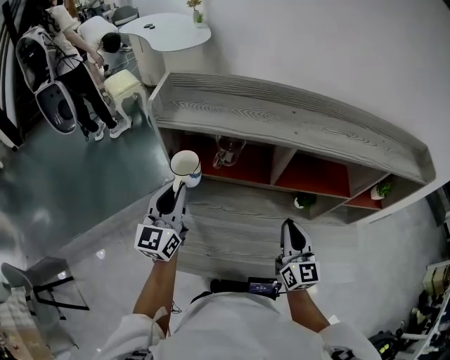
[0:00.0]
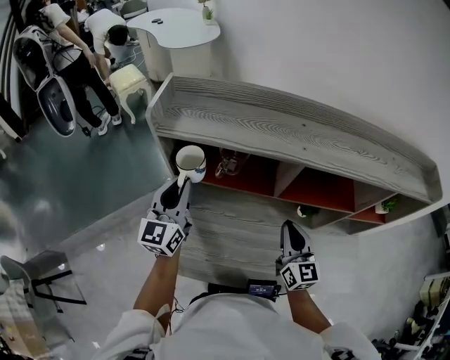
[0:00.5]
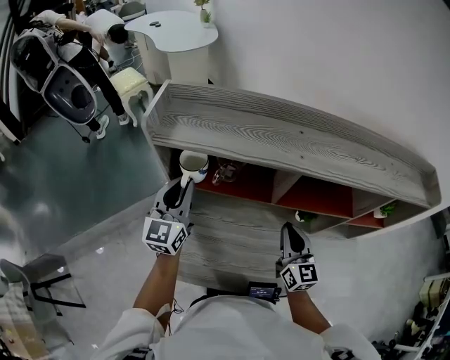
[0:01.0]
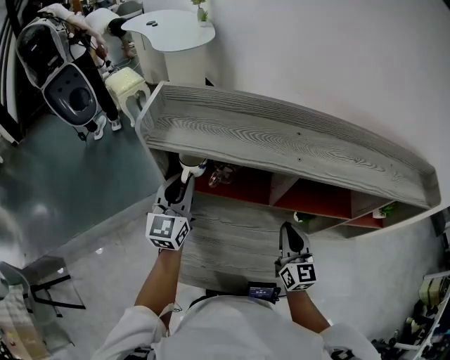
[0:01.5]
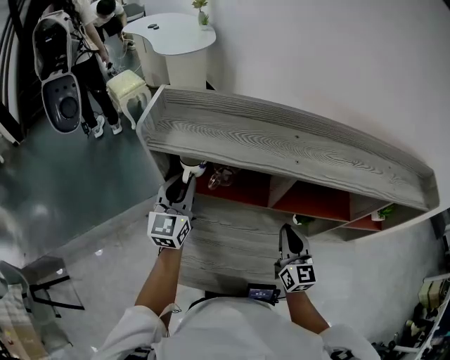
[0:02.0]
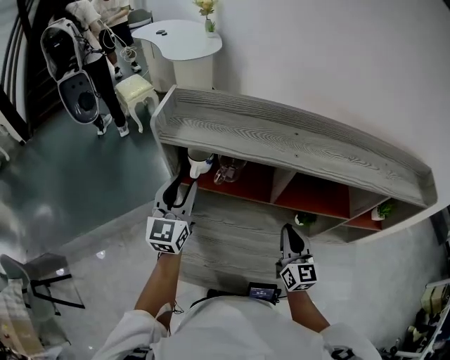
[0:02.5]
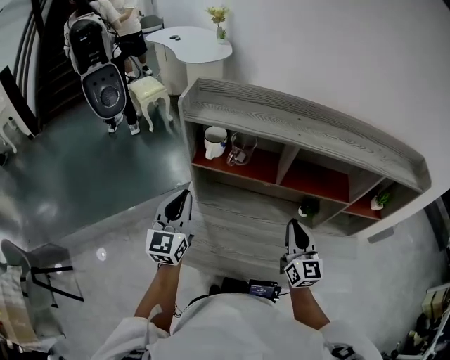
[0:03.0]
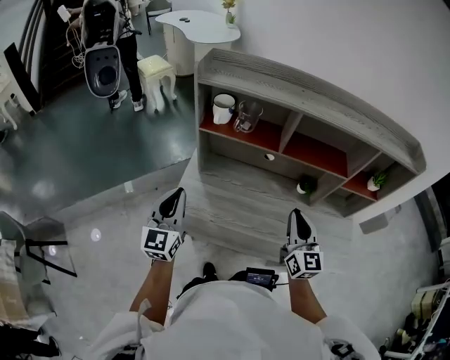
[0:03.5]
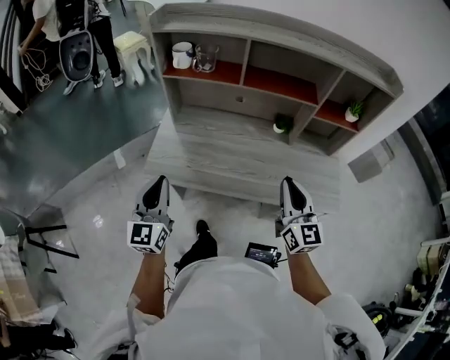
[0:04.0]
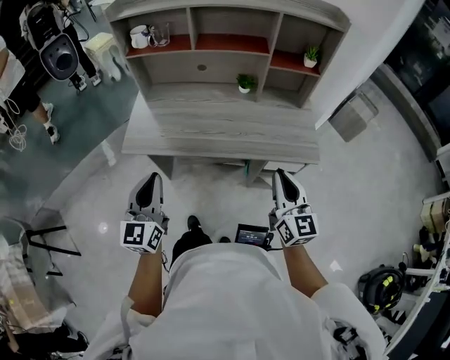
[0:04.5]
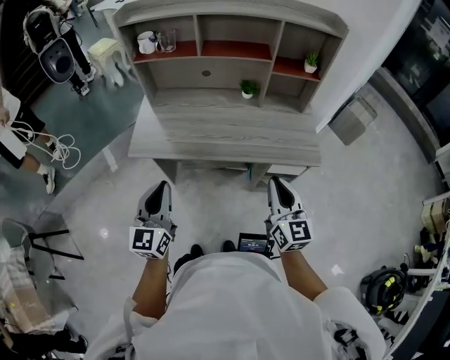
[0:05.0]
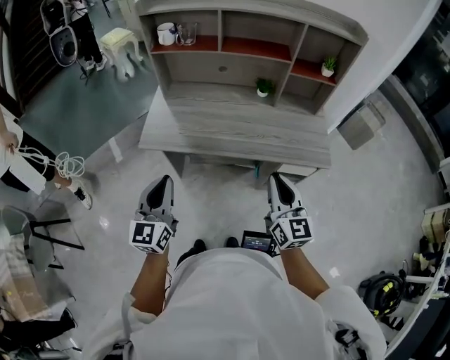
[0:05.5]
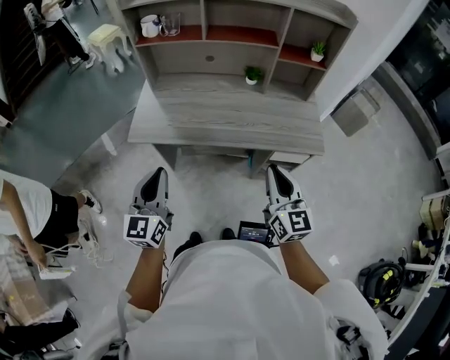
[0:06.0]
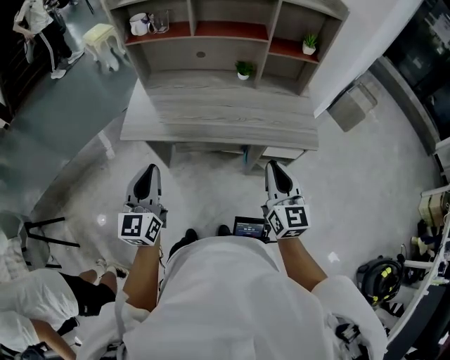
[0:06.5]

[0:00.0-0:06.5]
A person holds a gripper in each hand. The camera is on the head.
0:00.0 to 0:02.0: The two grippers go some 10 cm forward.
0:02.0 to 0:04.5: The two grippers travel together, backward, roughly 50 cm.
0:04.5 to 0:06.5: The right gripper reaches approximately 10 cm to the left, then returns.

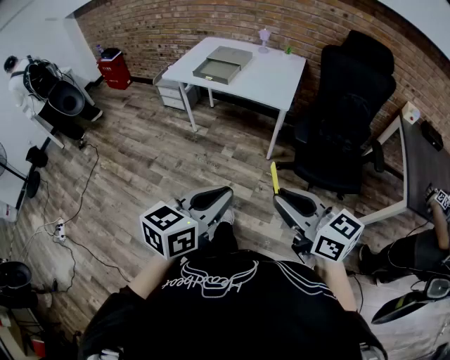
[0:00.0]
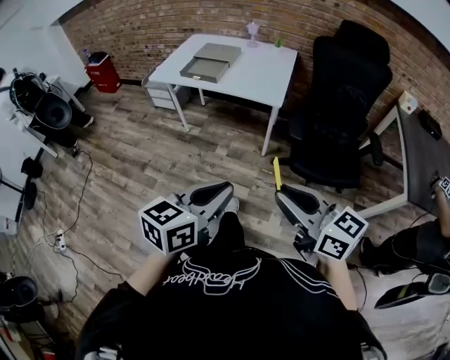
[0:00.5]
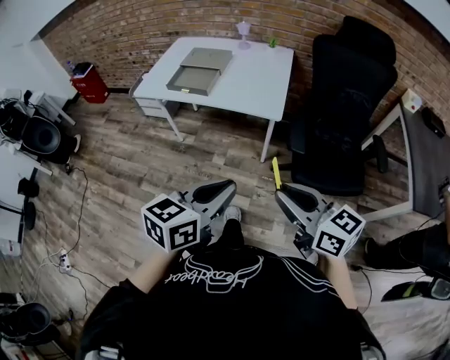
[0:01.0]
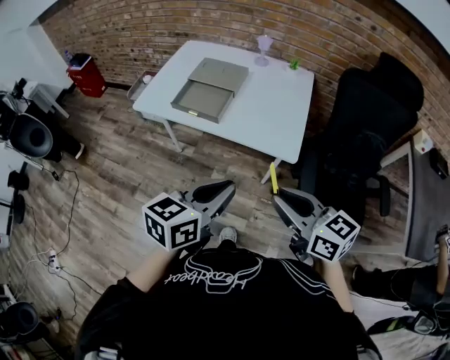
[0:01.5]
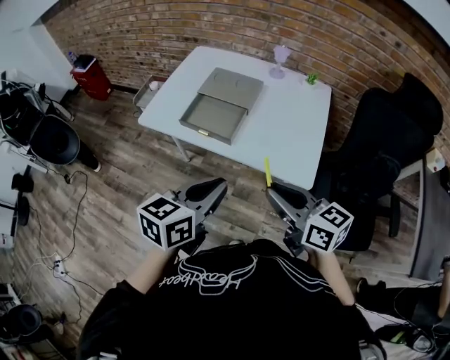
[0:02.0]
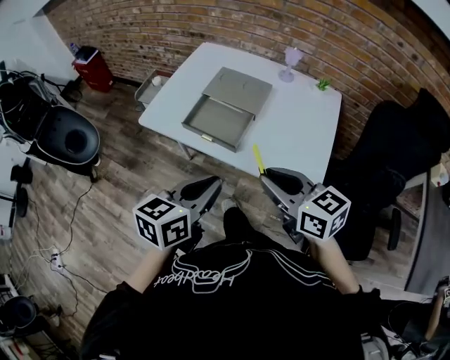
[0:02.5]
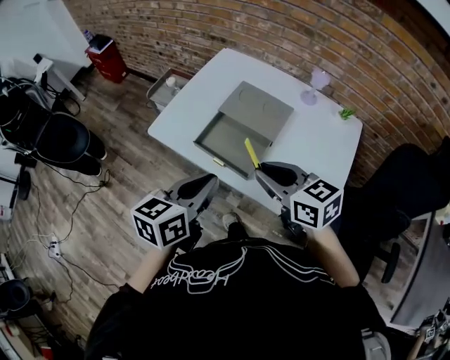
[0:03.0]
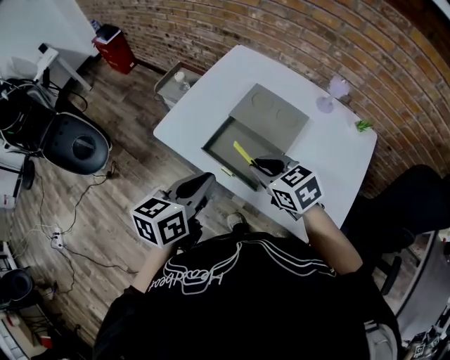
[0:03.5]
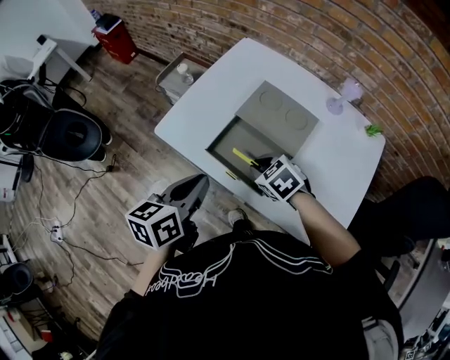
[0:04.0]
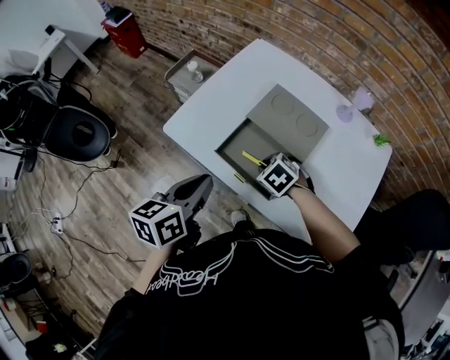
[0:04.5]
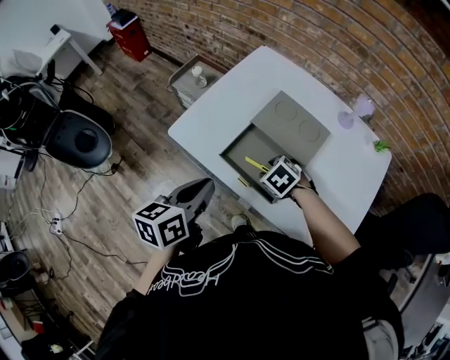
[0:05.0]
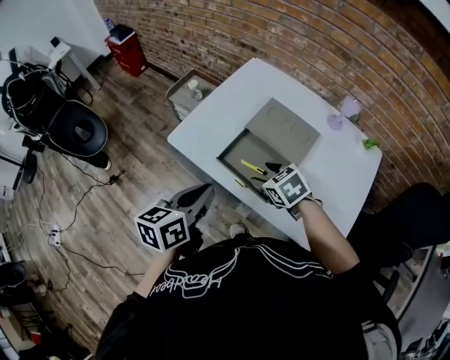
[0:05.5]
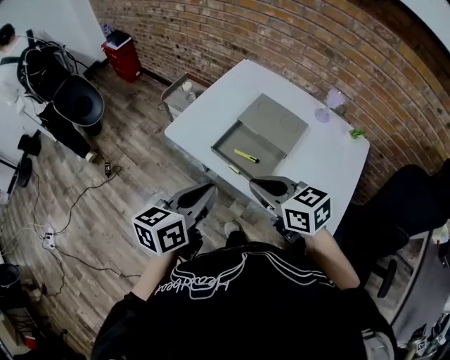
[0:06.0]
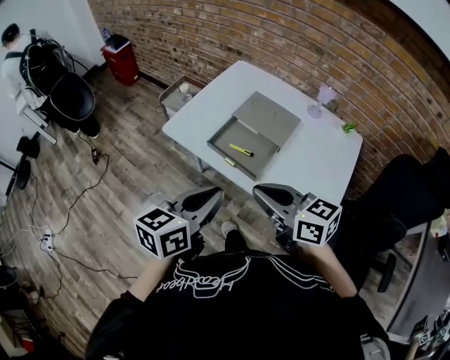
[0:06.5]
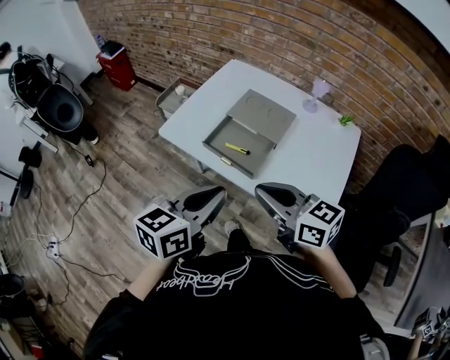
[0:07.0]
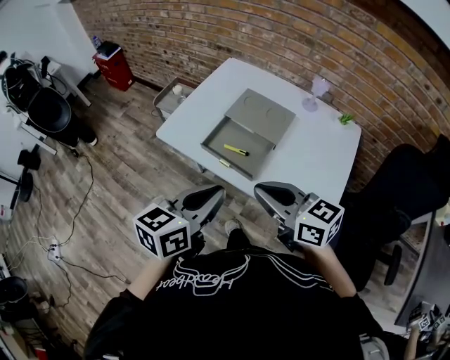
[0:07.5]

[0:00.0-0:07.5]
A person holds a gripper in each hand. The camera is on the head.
0:00.0 to 0:02.0: The two grippers travel together, forward, about 50 cm.
0:02.0 to 0:04.0: The left gripper goes about 25 cm forward and to the left, and swivels some 30 degrees. Meanwhile the right gripper heads forward and downward, covering about 35 cm, and angles its fingers downward, by approximately 40 degrees.
0:04.0 to 0:05.5: The right gripper opens its fingers.
0:05.5 to 0:07.5: The left gripper is displaced backward, to the right and upward by about 15 cm. Meanwhile the right gripper travels backward and upward by some 25 cm, tilts its fingers approximately 40 degrees upward, and closes.

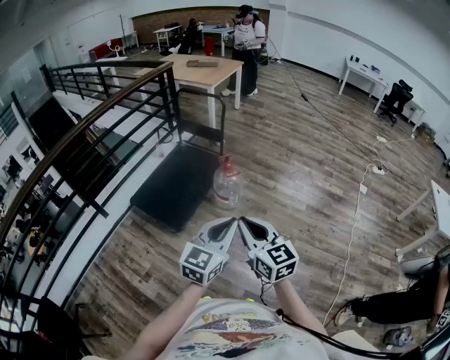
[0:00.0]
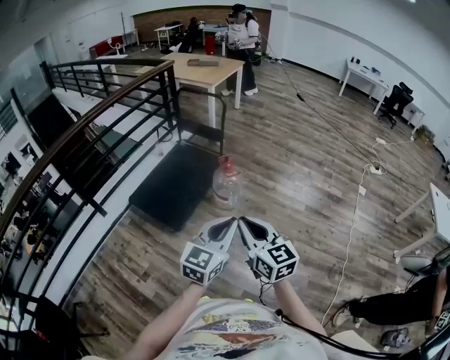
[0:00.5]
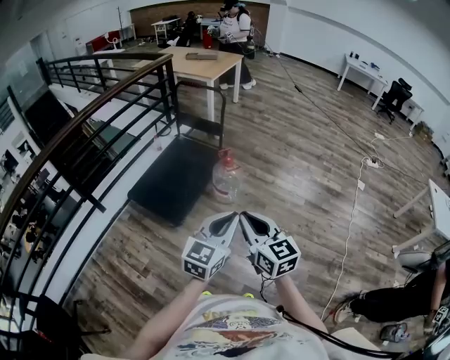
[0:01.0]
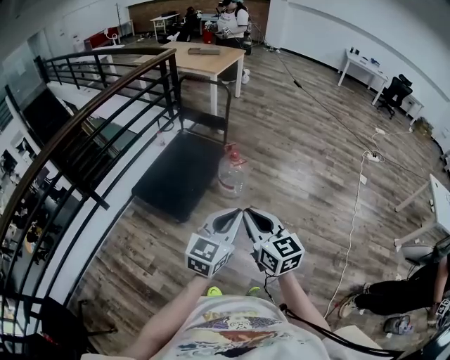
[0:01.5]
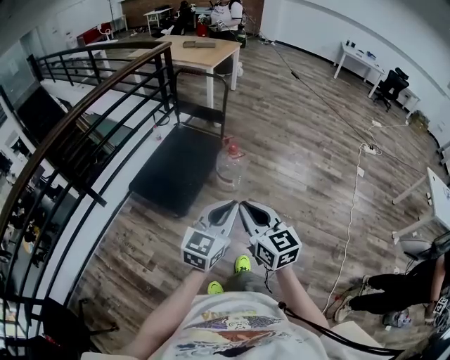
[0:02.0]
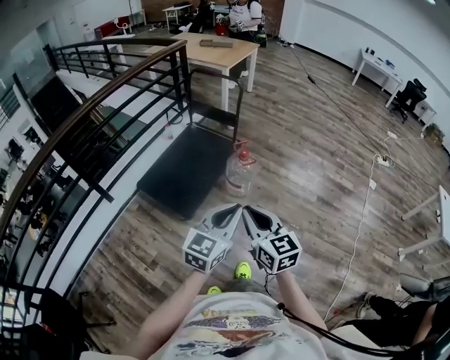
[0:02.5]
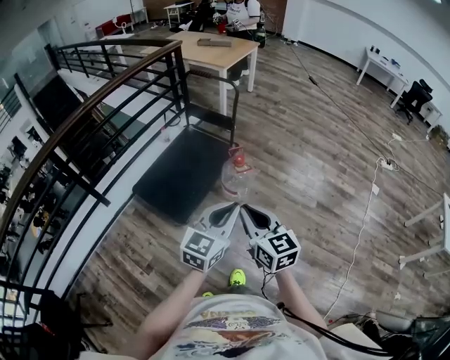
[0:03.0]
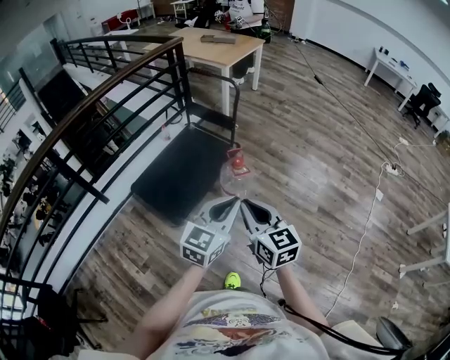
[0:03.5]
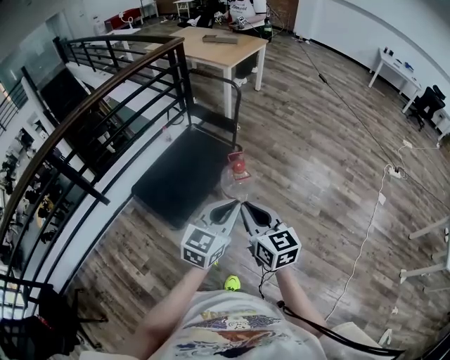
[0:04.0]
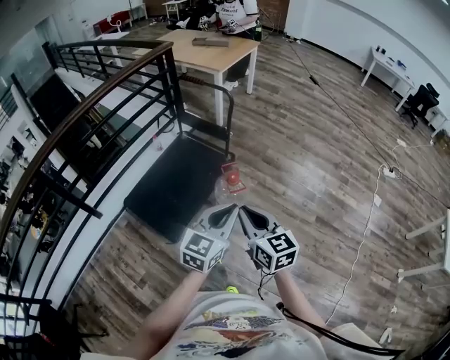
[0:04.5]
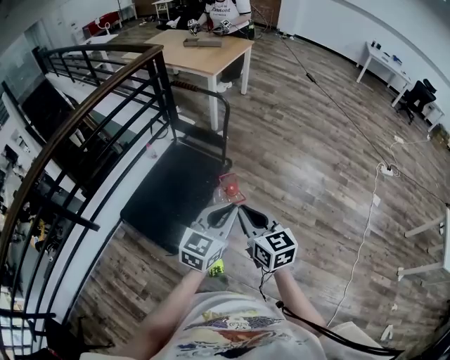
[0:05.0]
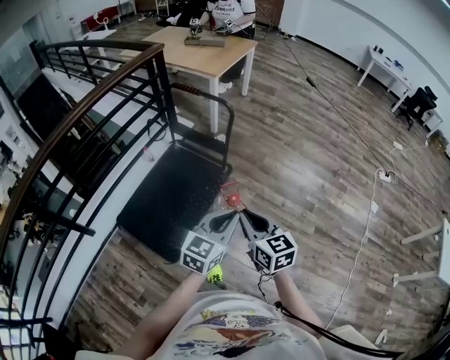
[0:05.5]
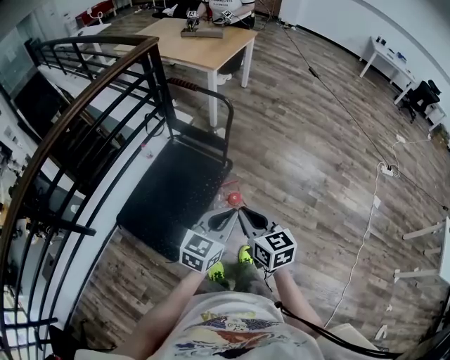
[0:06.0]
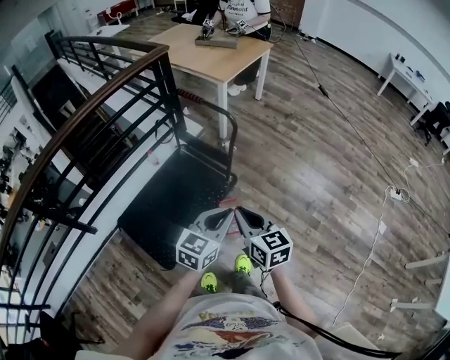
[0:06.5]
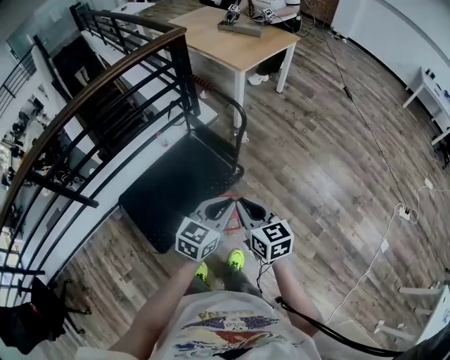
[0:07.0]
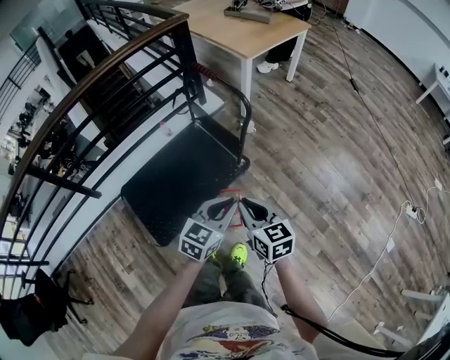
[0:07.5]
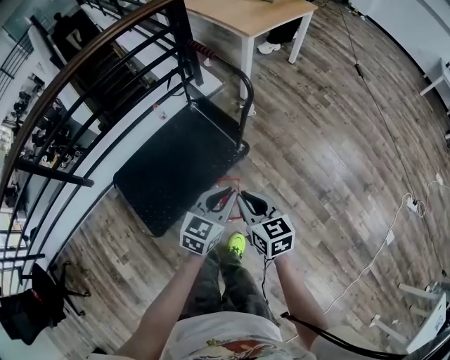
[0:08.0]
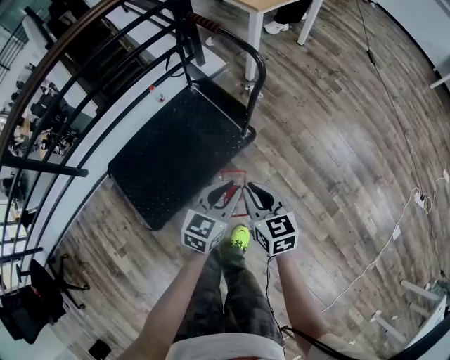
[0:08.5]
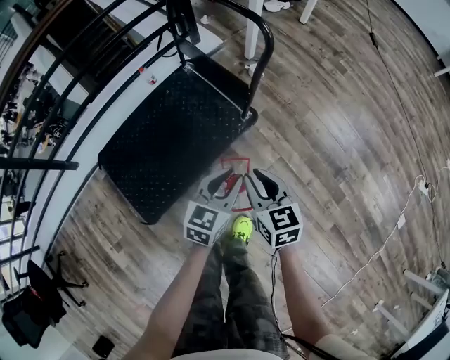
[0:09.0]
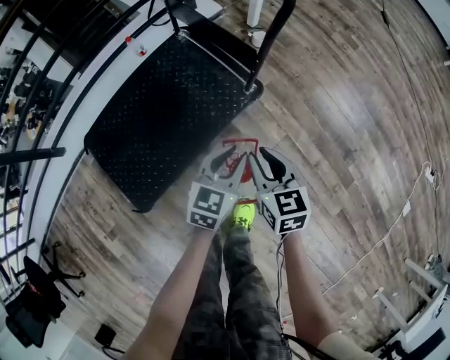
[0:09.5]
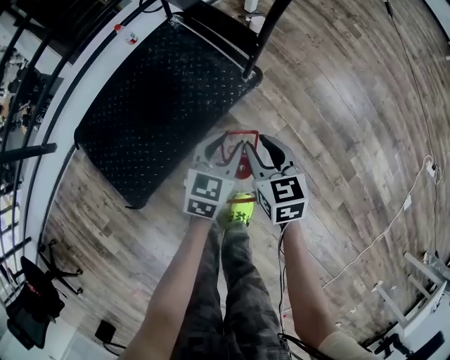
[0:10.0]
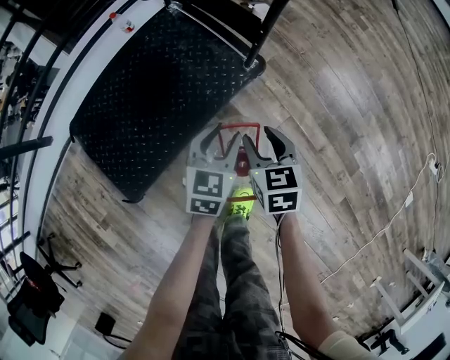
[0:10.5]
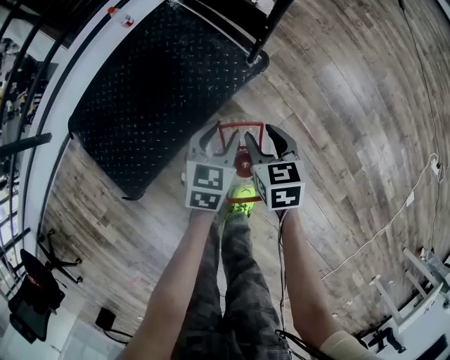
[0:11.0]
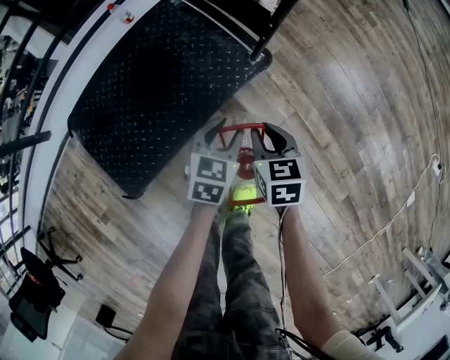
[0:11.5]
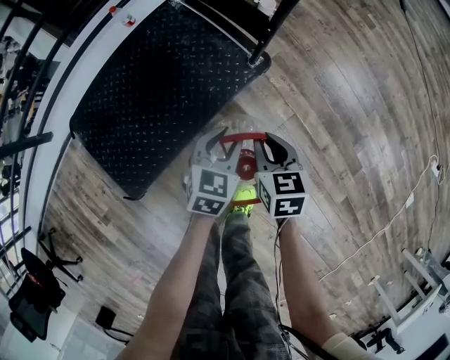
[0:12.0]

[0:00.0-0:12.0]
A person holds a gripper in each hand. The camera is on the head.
0:00.0 to 0:02.0: Both grippers move to the left, roughly 10 cm.
0:02.0 to 0:04.0: The grippers both shift forward and to the right by approximately 30 cm.
0:04.0 to 0:06.0: Both grippers travel together forward, some 30 cm.
0:06.0 to 0:08.0: Both grippers move forward, downward and to the right, some 25 cm. The right gripper swivels some 20 degrees.
0:08.0 to 0:10.0: The grippers both shift downward by some 35 cm. The left gripper opens its fingers.
0:10.0 to 0:12.0: The two grippers go about 5 cm downward.

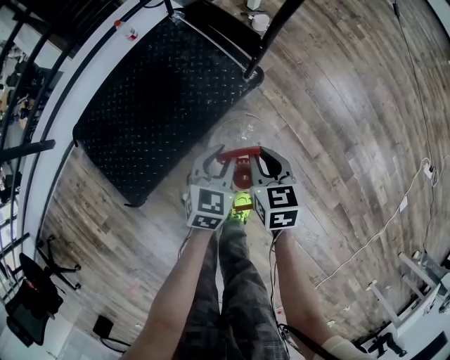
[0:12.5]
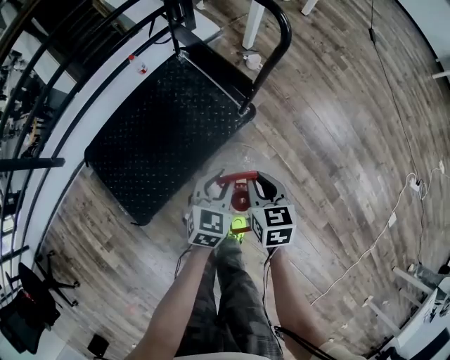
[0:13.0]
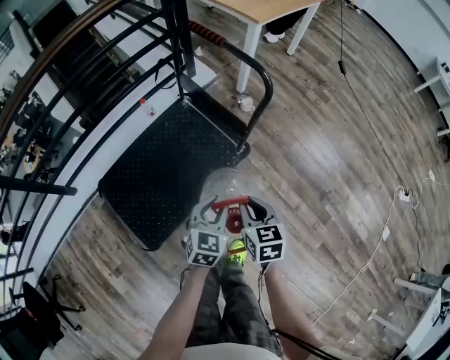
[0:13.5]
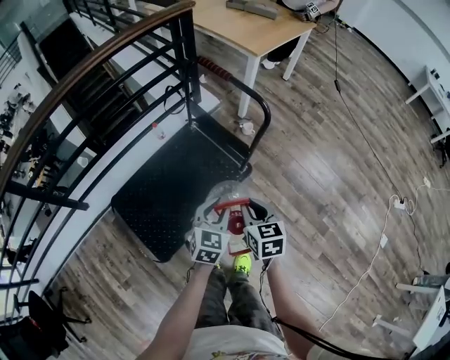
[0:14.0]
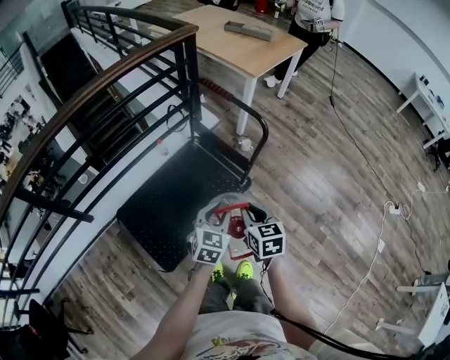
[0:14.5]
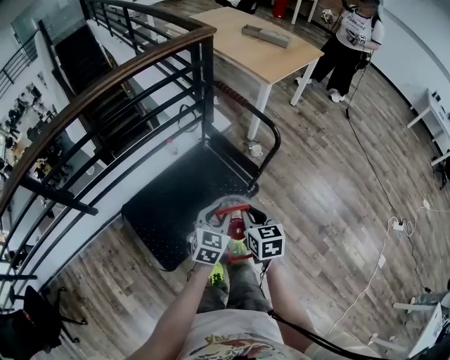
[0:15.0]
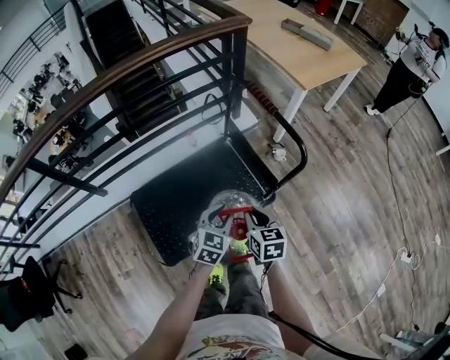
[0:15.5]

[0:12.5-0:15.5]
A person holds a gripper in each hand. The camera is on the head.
0:12.5 to 0:14.0: The grippers both shift upward by approximately 35 cm.
0:14.0 to 0:15.5: Both grippers travel together forward and to the left, roughly 15 cm.
